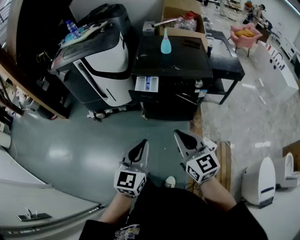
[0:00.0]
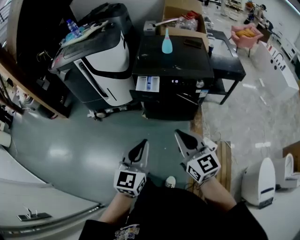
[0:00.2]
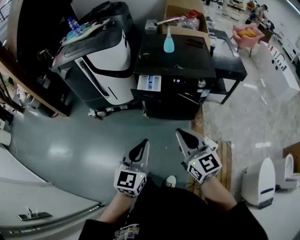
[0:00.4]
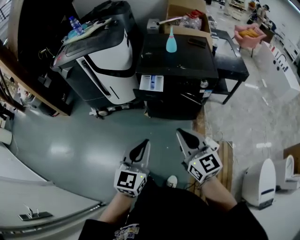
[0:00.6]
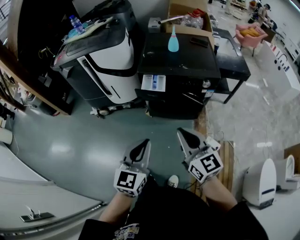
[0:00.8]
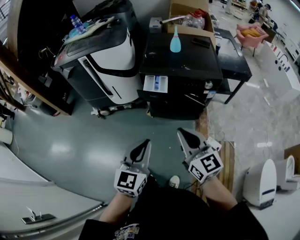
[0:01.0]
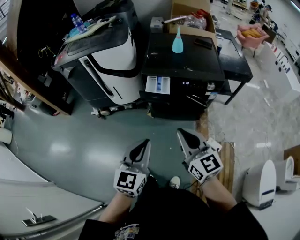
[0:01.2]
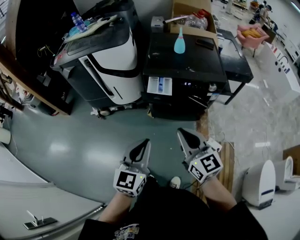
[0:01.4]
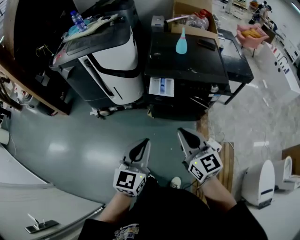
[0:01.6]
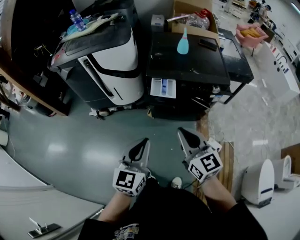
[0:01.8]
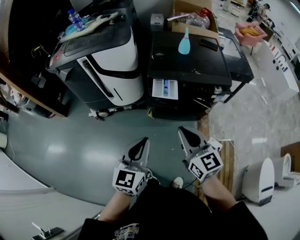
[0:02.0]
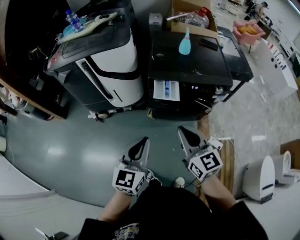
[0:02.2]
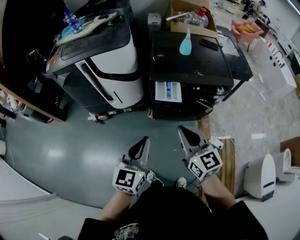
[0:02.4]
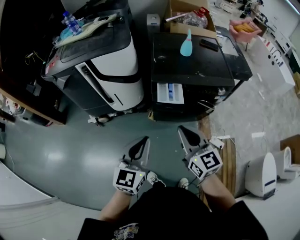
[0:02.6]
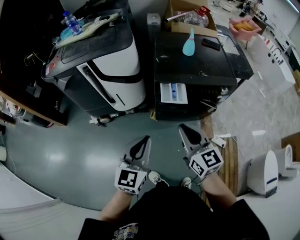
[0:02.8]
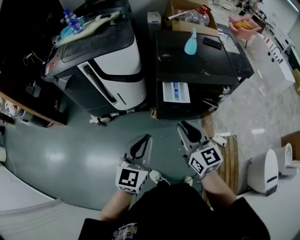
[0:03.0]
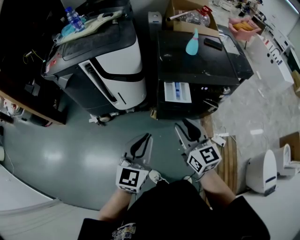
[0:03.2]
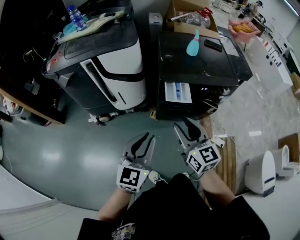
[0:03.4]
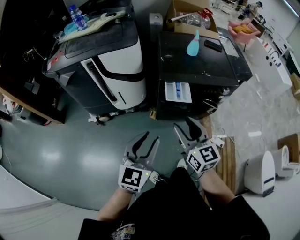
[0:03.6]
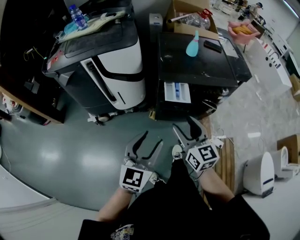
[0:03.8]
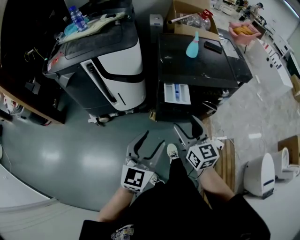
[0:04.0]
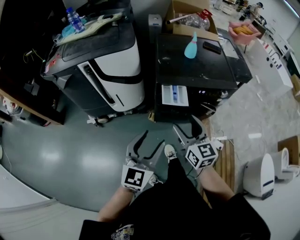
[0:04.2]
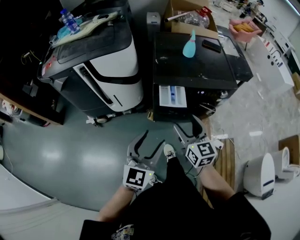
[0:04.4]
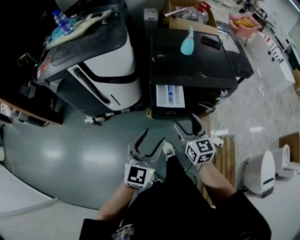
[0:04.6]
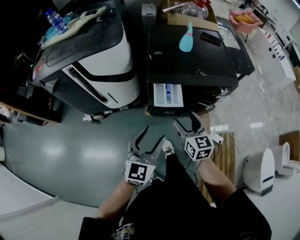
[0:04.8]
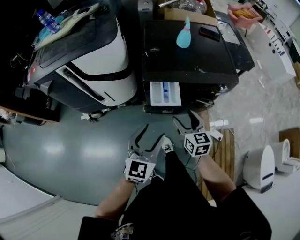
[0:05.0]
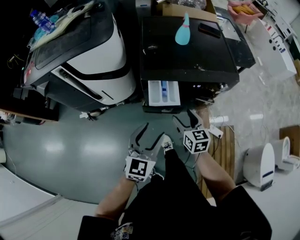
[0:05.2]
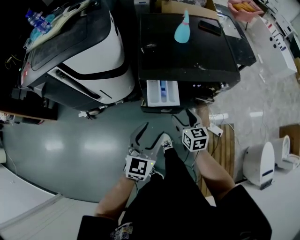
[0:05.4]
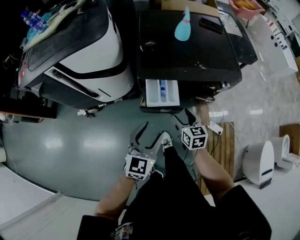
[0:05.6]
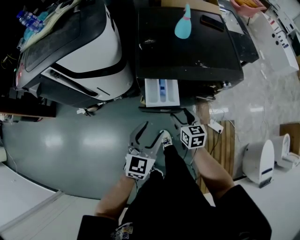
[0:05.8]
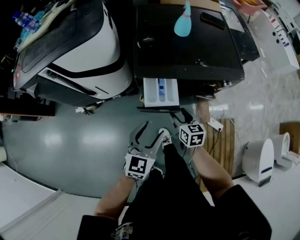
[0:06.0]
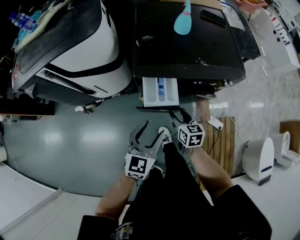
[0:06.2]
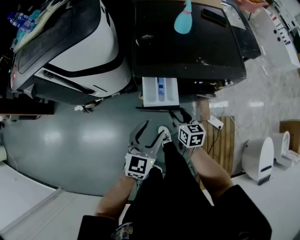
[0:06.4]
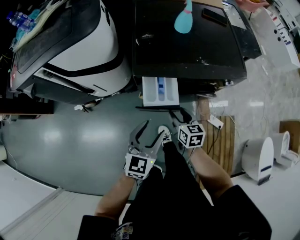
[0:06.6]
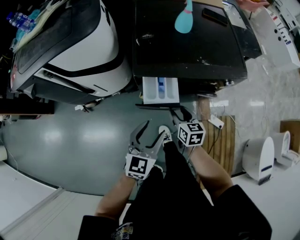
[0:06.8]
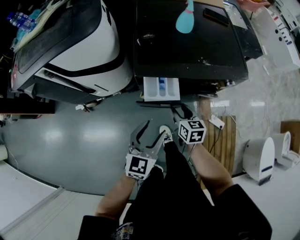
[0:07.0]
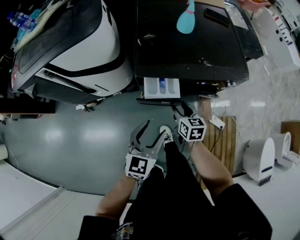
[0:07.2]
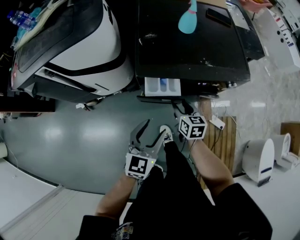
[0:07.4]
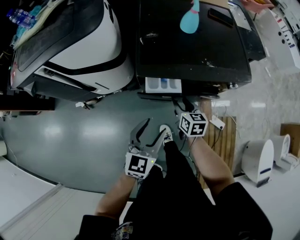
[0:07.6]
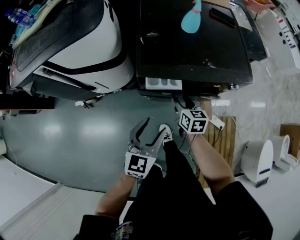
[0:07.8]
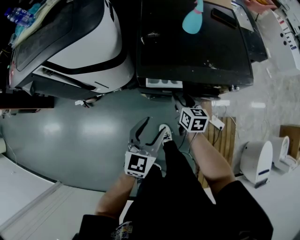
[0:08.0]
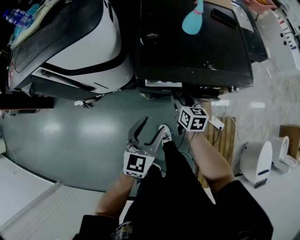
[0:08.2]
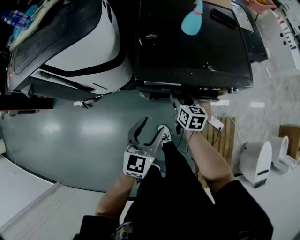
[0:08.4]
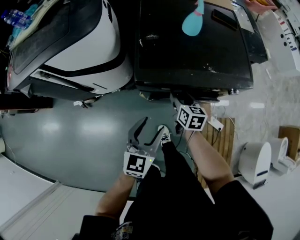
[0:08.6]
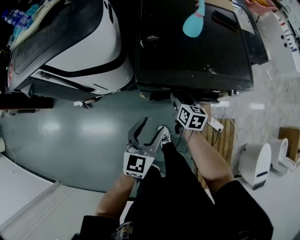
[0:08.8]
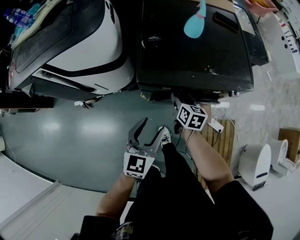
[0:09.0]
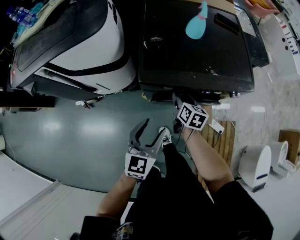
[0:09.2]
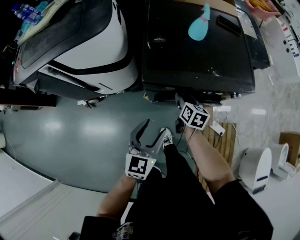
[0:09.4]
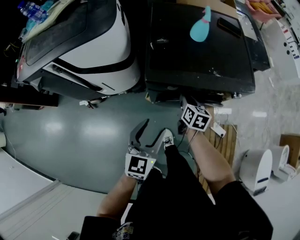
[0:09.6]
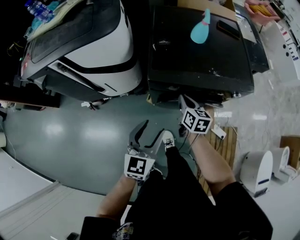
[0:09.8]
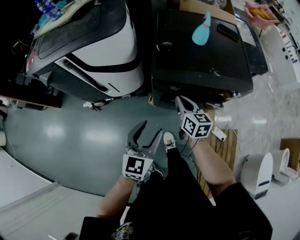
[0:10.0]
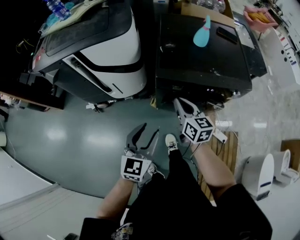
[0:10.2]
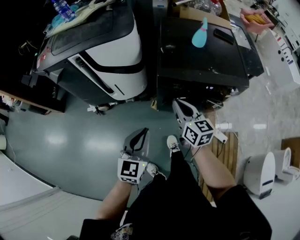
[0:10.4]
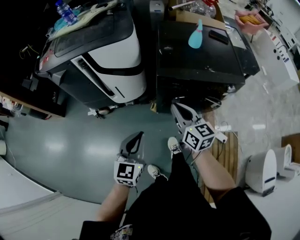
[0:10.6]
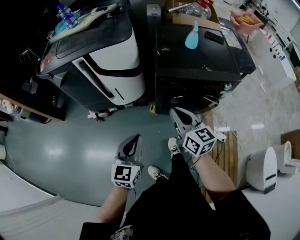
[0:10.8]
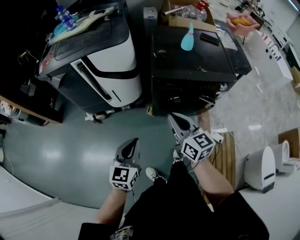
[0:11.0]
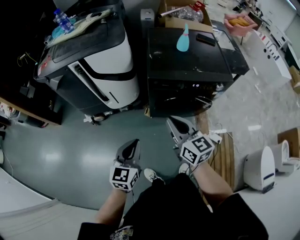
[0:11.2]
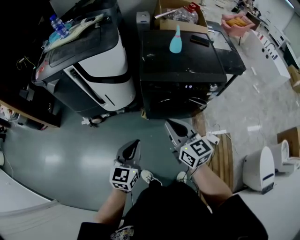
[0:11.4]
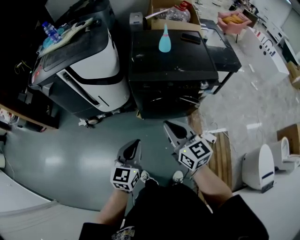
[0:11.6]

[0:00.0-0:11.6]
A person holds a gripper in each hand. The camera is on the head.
0.0 to 1.4 s: The left gripper is displaced to the left and forward by some 10 cm; the right gripper moves forward and to the left, approximately 10 cm.
1.4 to 2.8 s: Both grippers move to the left and forward, approximately 15 cm.
2.8 to 4.4 s: The right gripper travels forward and downward by about 10 cm, and opens its fingers; the left gripper opens its fingers.
4.4 to 5.8 s: The left gripper travels downward, forward and to the right by roughly 20 cm; the right gripper heads downward and forward, covering approximately 25 cm, and swivels approximately 20 degrees.
5.8 to 7.2 s: The grippers make only small movements.
7.2 to 8.8 s: The left gripper is displaced forward by about 5 cm; the right gripper shifts roughly 10 cm forward.
8.8 to 10.2 s: The right gripper travels upward, backward and to the left by roughly 20 cm, rotates roughly 20 degrees, and closes its fingers. The left gripper goes approximately 15 cm backward, to the left and upward.
10.2 to 11.6 s: The right gripper heads backward and upward, covering approximately 25 cm; the left gripper is displaced backward and to the right by approximately 15 cm, and closes up.

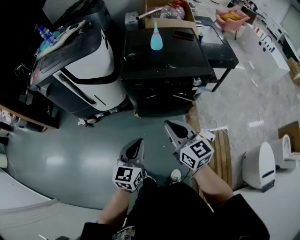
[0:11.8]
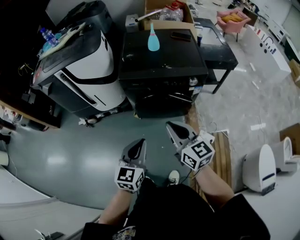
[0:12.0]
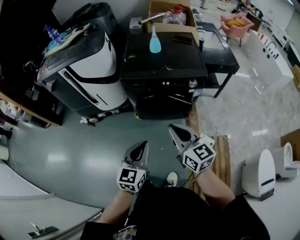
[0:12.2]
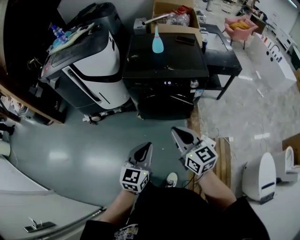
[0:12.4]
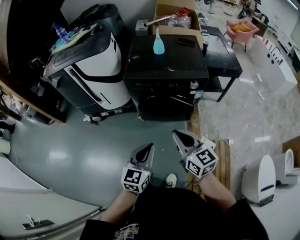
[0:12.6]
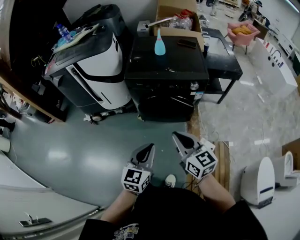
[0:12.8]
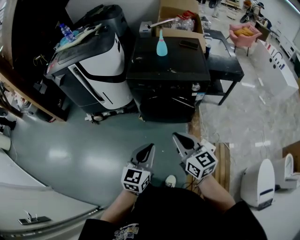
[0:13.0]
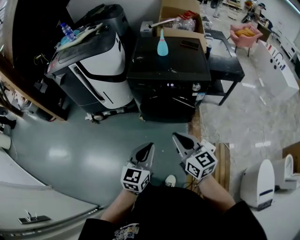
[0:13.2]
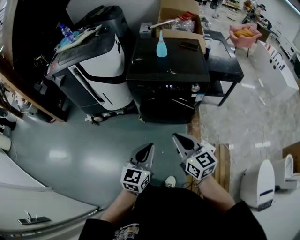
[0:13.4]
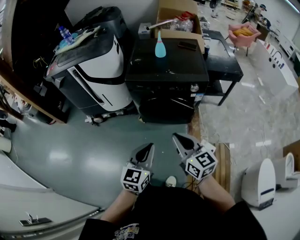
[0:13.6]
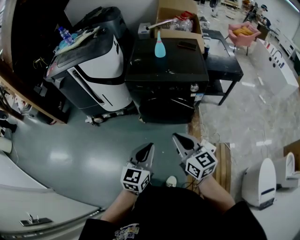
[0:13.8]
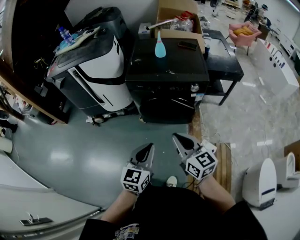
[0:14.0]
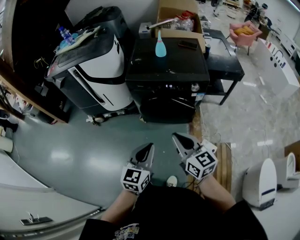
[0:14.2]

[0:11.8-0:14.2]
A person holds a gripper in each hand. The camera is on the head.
11.8 to 13.0 s: Both grippers travel together backward and to the right, roughly 15 cm.
13.0 to 14.2 s: Neither gripper changes place.

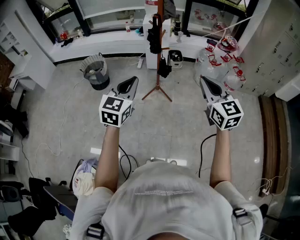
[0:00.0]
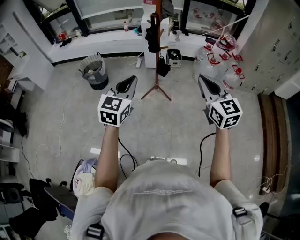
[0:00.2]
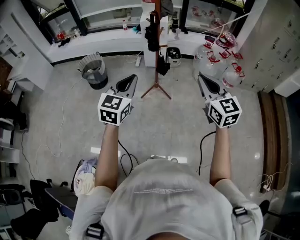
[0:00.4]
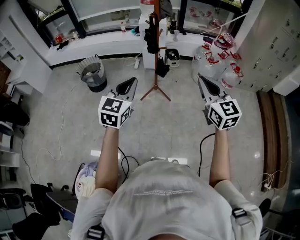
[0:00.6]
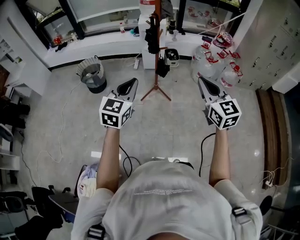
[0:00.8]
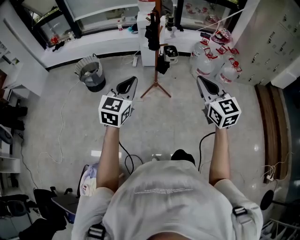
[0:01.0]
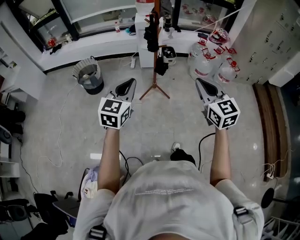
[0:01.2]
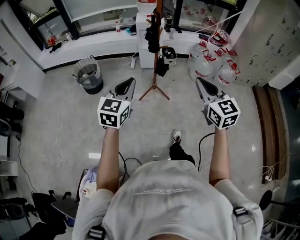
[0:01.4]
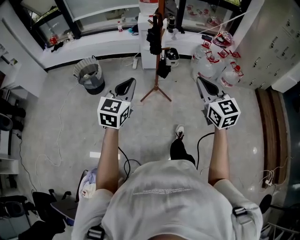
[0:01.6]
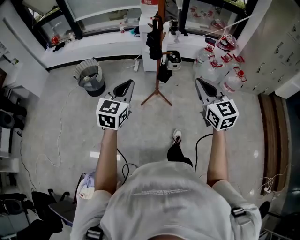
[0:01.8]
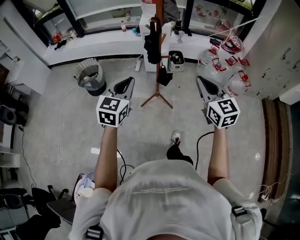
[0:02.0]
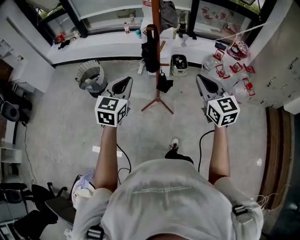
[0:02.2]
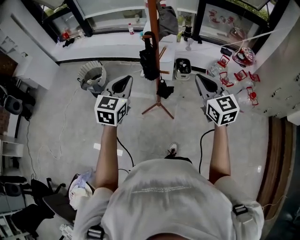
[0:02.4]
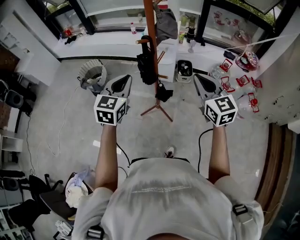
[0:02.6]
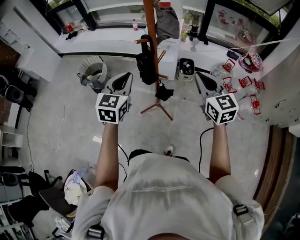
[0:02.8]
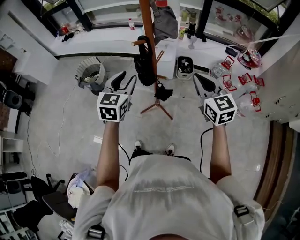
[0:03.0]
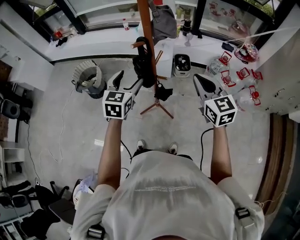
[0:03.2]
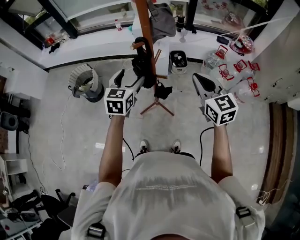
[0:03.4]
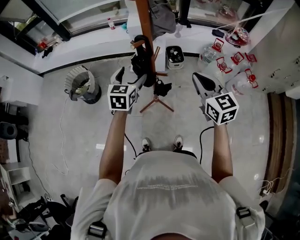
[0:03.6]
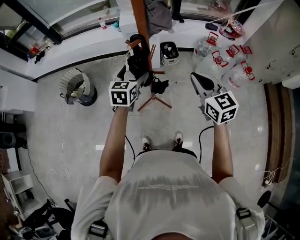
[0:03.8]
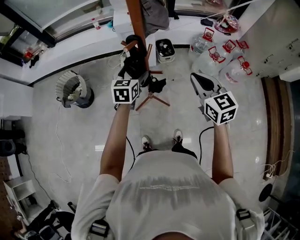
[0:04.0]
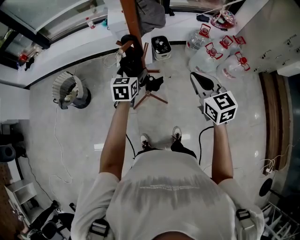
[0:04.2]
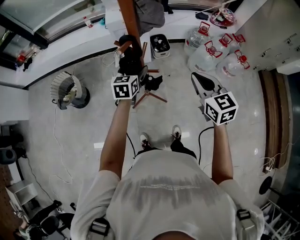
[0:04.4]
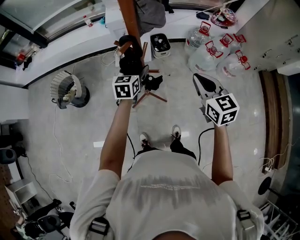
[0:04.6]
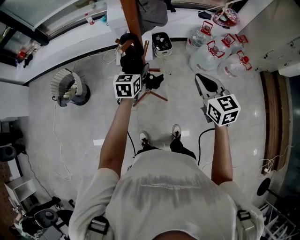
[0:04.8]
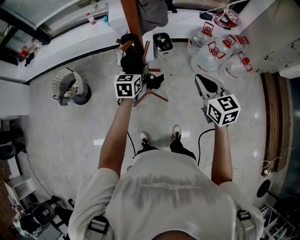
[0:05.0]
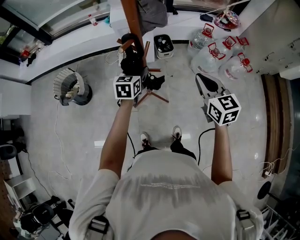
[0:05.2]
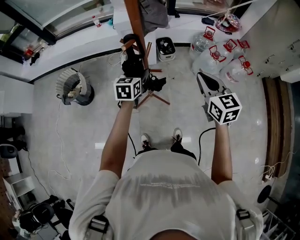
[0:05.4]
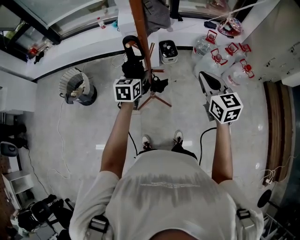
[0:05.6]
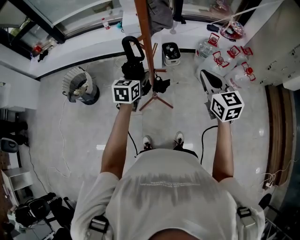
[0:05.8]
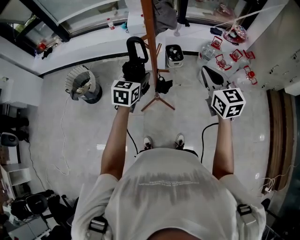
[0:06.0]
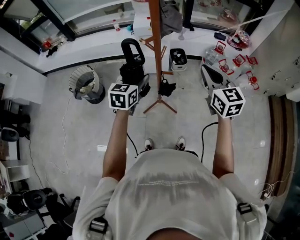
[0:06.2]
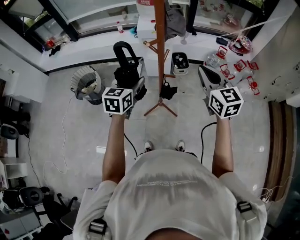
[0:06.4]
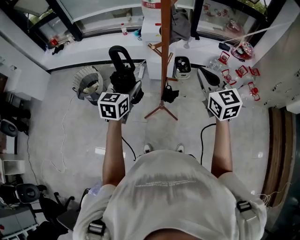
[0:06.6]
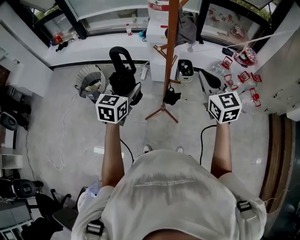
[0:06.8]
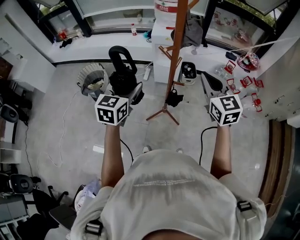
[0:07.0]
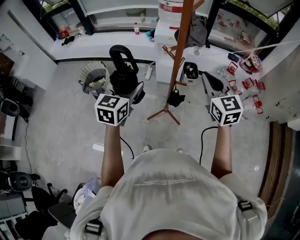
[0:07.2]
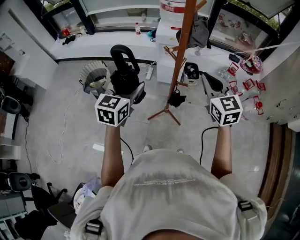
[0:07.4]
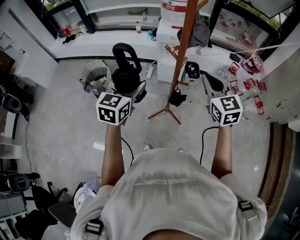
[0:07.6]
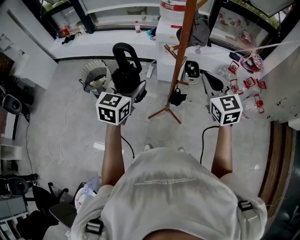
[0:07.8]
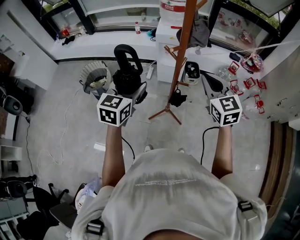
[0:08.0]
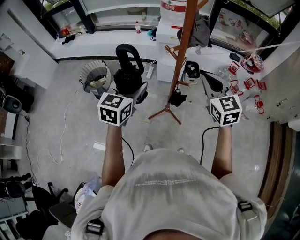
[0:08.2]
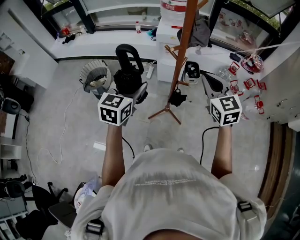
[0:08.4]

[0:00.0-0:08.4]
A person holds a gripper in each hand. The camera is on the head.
0.0 to 1.4 s: The two grippers go some 5 cm to the left.
1.4 to 2.8 s: Both grippers move forward, approximately 35 cm.
2.8 to 4.2 s: The right gripper moves downward, about 5 cm, and turns by roughly 20 degrees. Meanwhile the left gripper is displaced downward and forward by some 25 cm, swivels roughly 20 degrees, and opens up.
4.2 to 5.6 s: The grippers stay close to where they were, moving slightly.
5.6 to 7.0 s: The left gripper heads upward, to the left and backward, covering some 20 cm, while the right gripper travels to the left and upward by about 10 cm.
7.0 to 8.4 s: The grippers stay close to where they were, moving slightly.

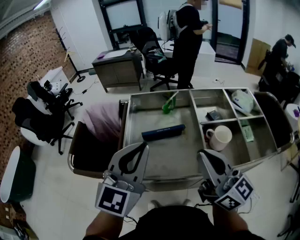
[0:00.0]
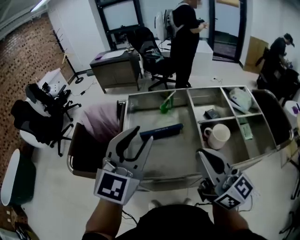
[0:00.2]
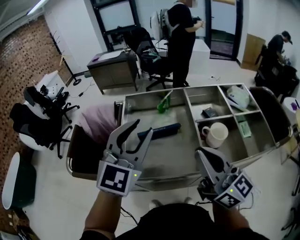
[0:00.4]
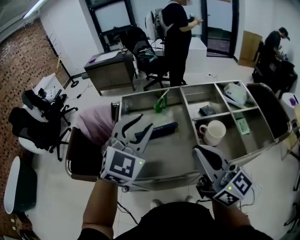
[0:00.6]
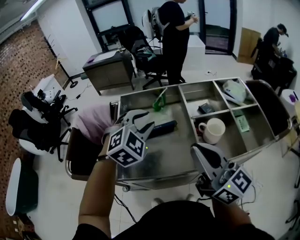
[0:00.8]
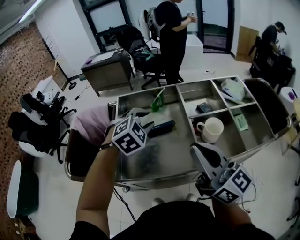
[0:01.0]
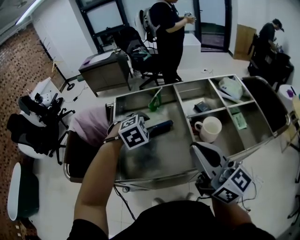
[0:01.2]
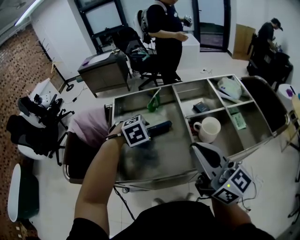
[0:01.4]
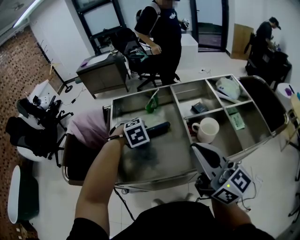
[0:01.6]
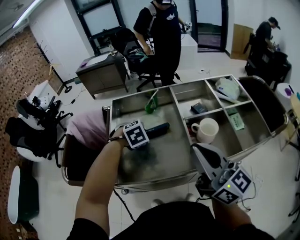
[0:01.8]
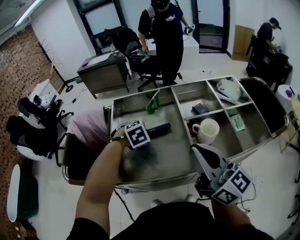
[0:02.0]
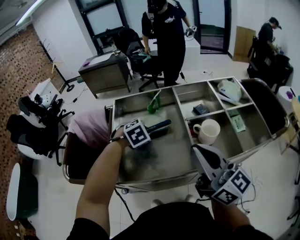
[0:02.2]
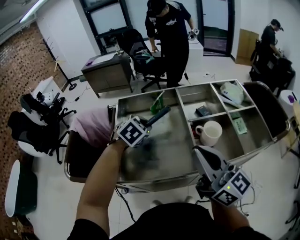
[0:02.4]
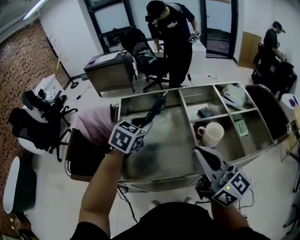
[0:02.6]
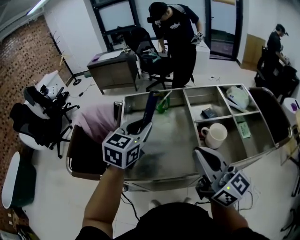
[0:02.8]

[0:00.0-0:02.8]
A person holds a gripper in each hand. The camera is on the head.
0.0 to 1.4 s: The left gripper is displaced downward and forward by about 25 cm, angles its fingers downward, by about 70 degrees, and opens its fingers.
1.4 to 2.8 s: The left gripper goes about 15 cm upward, and tilts its fingers about 50 degrees upward.
